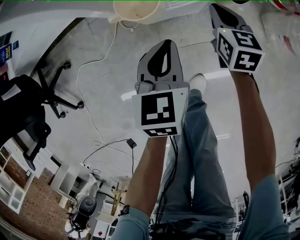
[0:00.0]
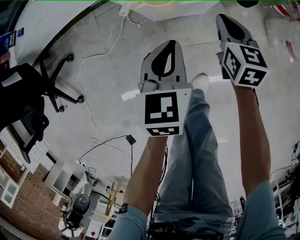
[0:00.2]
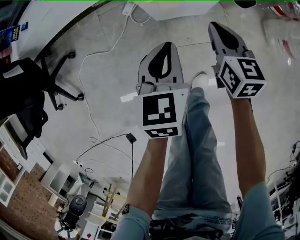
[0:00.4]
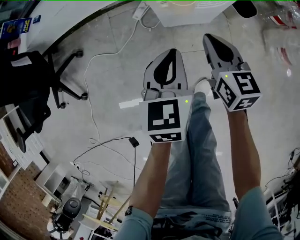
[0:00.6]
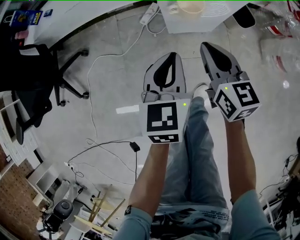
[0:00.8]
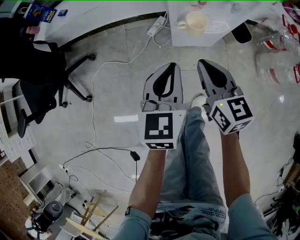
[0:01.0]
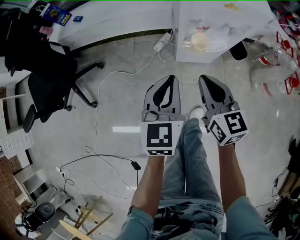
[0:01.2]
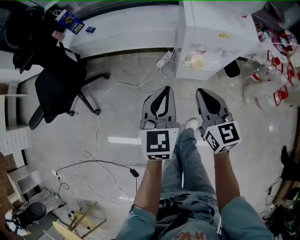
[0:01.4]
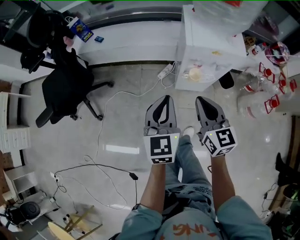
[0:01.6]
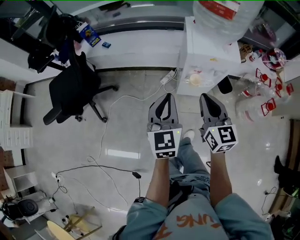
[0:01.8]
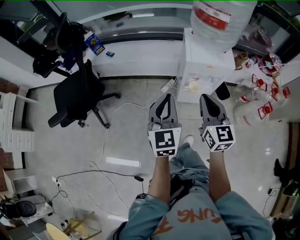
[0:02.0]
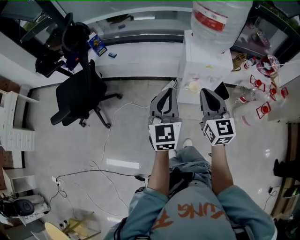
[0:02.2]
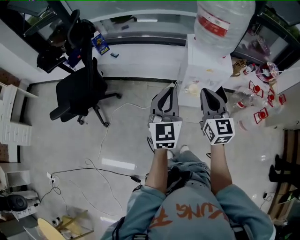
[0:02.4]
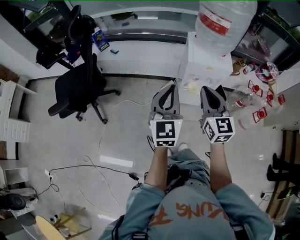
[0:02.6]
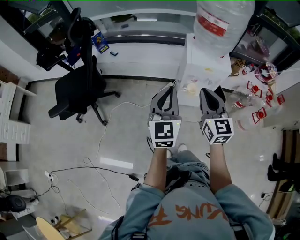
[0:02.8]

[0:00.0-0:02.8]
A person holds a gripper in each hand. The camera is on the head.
0:00.0 to 0:01.4: The left gripper goes roughly 40 cm upward and to the left, and rotates about 20 degrees, while the right gripper heads upward, to the left and backward, covering about 50 cm, and rotates roughly 30 degrees.
0:01.4 to 0:02.8: The two grippers go some 20 cm upward.

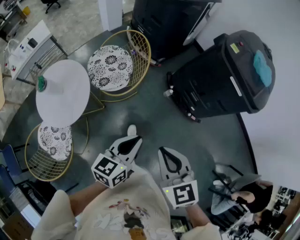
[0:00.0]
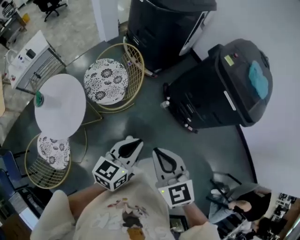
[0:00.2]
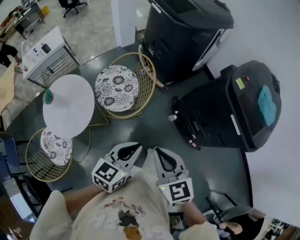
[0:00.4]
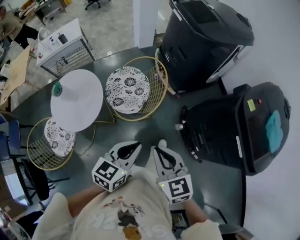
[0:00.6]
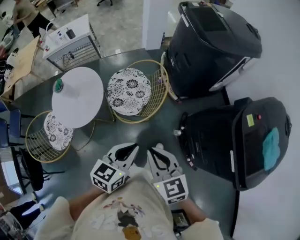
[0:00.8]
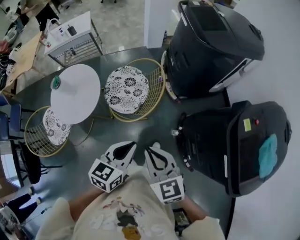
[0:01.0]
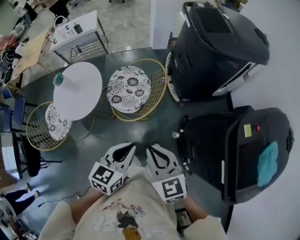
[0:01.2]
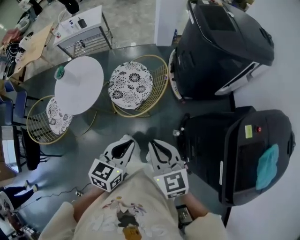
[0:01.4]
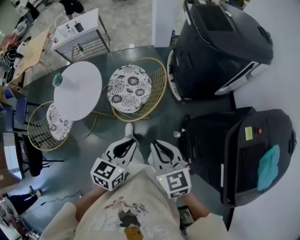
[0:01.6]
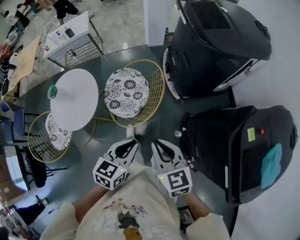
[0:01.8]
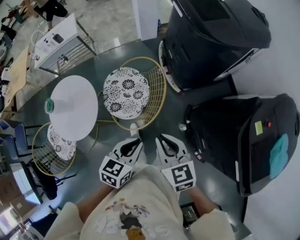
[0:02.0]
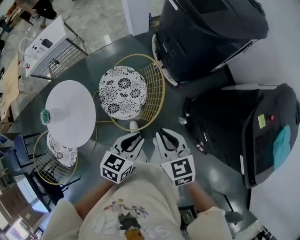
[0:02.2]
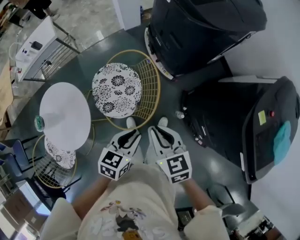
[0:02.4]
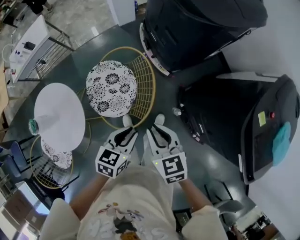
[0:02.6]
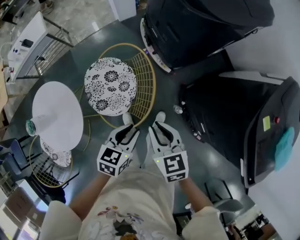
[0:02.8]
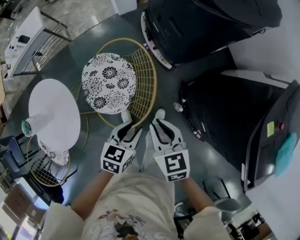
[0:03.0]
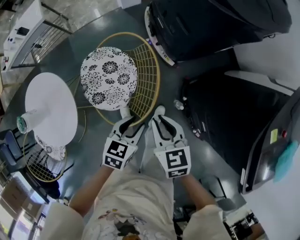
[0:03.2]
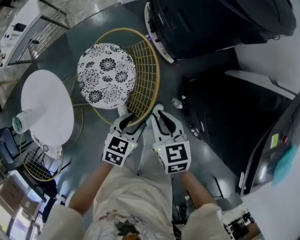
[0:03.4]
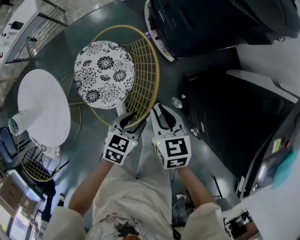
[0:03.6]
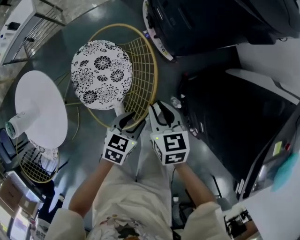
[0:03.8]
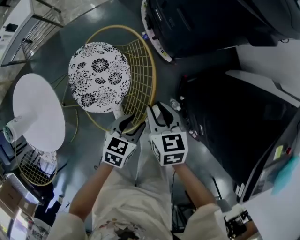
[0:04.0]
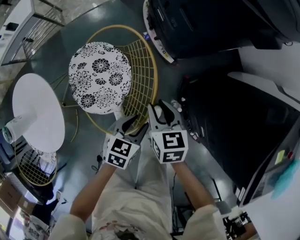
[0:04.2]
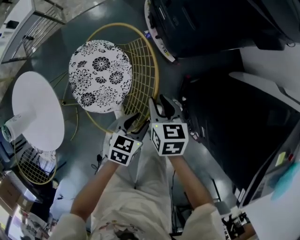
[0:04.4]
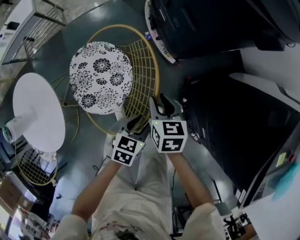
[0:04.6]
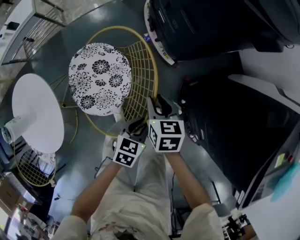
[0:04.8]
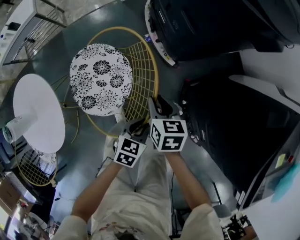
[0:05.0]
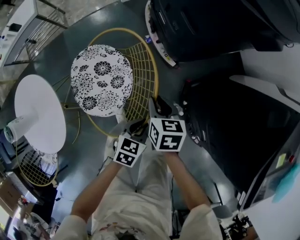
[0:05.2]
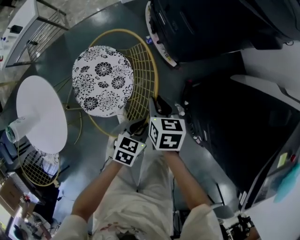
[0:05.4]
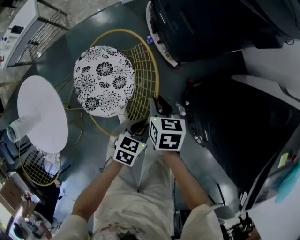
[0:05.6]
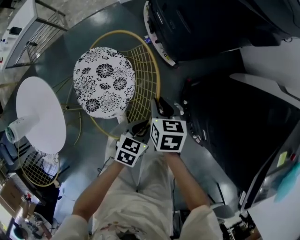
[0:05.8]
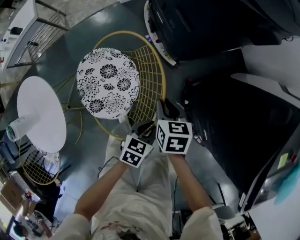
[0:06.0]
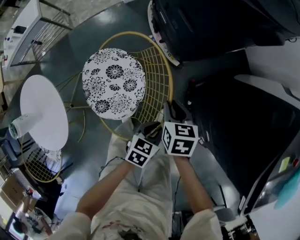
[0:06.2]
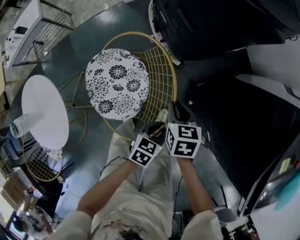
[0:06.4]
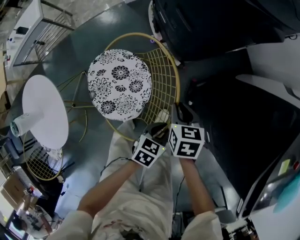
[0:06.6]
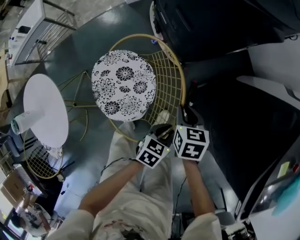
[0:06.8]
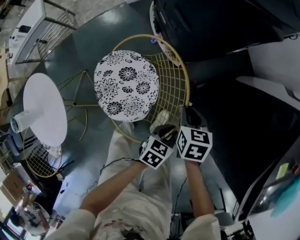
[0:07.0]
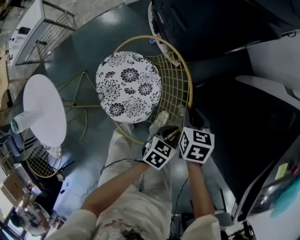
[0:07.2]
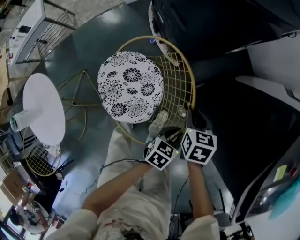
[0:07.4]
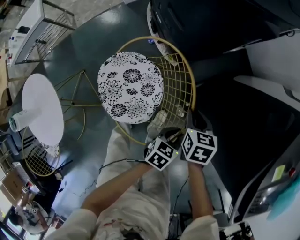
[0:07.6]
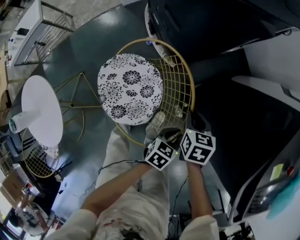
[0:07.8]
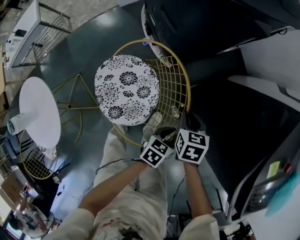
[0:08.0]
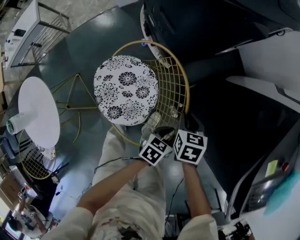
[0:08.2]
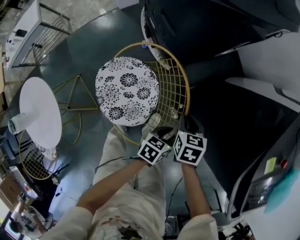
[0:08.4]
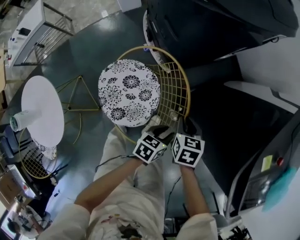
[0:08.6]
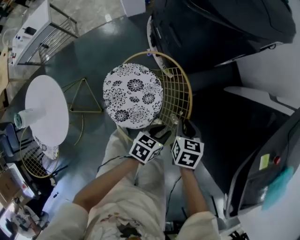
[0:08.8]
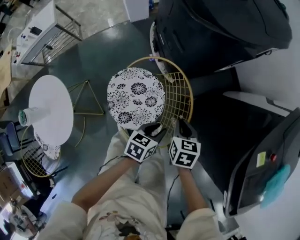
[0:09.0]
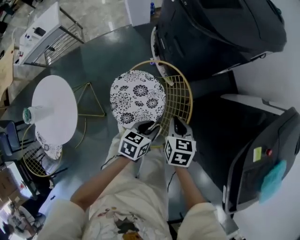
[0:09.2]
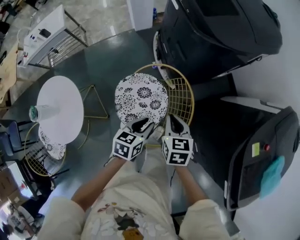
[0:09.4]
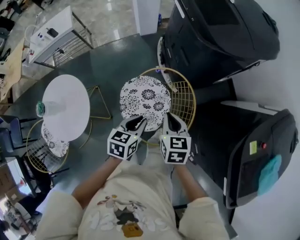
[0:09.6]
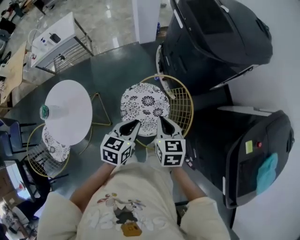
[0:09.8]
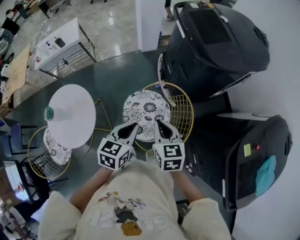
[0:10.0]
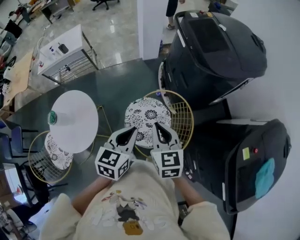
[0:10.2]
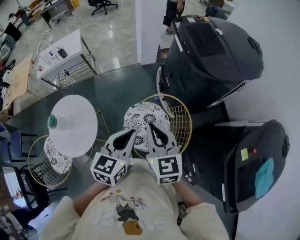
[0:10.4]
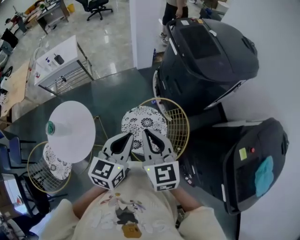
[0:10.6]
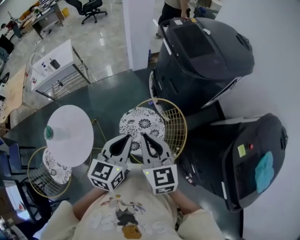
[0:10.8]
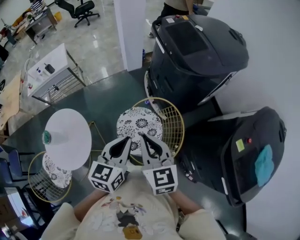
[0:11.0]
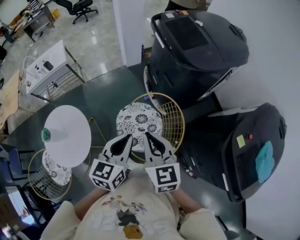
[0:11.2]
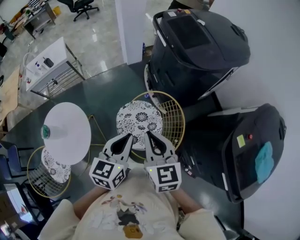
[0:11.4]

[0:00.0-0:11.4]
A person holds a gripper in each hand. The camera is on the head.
0:00.0 to 0:01.4: The right gripper ends up roughly 25 cm from where it was, and swivels about 40 degrees. The left gripper moves roughly 20 cm, and swivels roughly 40 degrees.
0:01.4 to 0:02.8: The right gripper shifts by some 20 cm, and rotates about 30 degrees. The left gripper changes place by some 25 cm, and turns by some 30 degrees.
0:02.8 to 0:04.2: The left gripper goes approximately 15 cm downward, while the right gripper travels downward and forward by roughly 20 cm.
0:04.2 to 0:05.6: The left gripper closes its fingers.
0:05.6 to 0:08.6: The grippers make only small movements.
0:08.6 to 0:10.0: Both grippers travel together upward, approximately 30 cm. The left gripper rotates about 30 degrees, and closes. The right gripper changes its angle by approximately 30 degrees.
0:10.0 to 0:11.4: Both grippers move upward, about 10 cm.

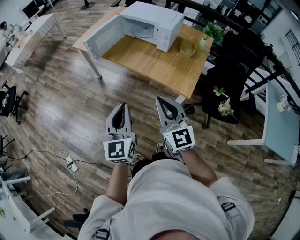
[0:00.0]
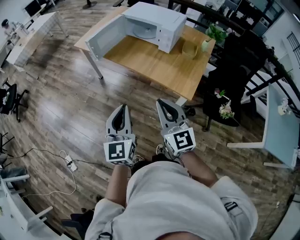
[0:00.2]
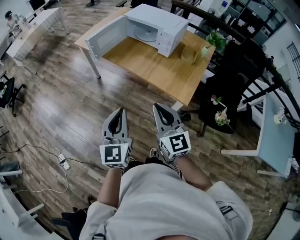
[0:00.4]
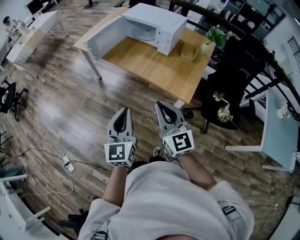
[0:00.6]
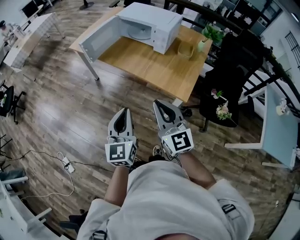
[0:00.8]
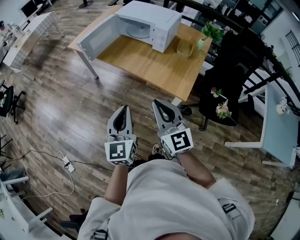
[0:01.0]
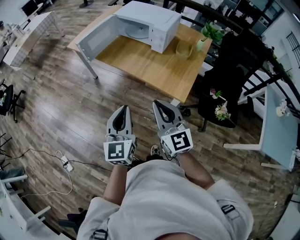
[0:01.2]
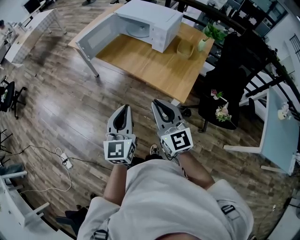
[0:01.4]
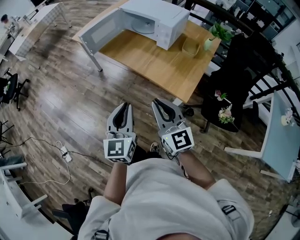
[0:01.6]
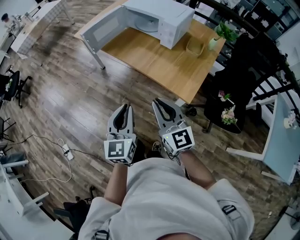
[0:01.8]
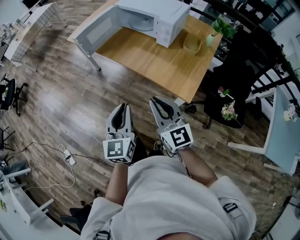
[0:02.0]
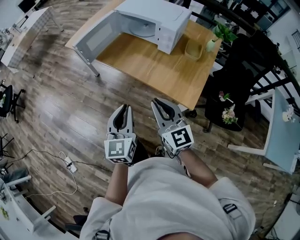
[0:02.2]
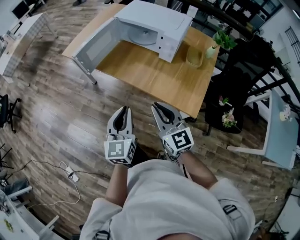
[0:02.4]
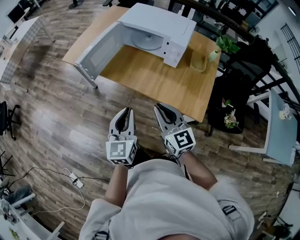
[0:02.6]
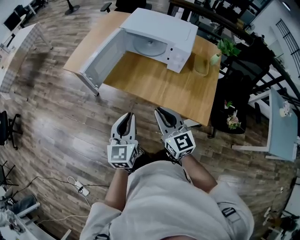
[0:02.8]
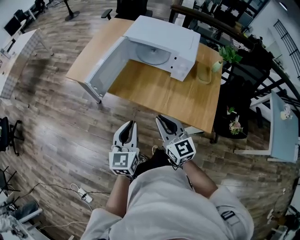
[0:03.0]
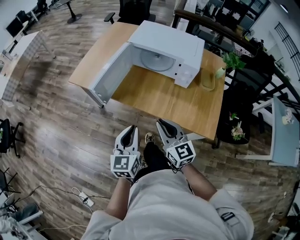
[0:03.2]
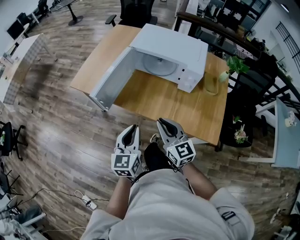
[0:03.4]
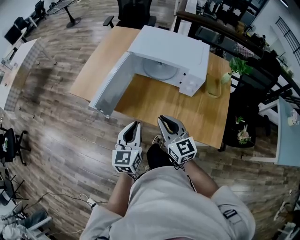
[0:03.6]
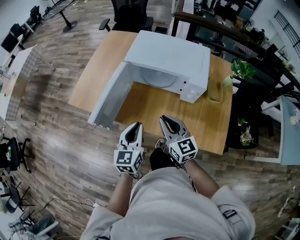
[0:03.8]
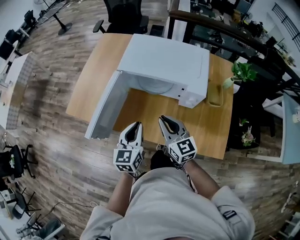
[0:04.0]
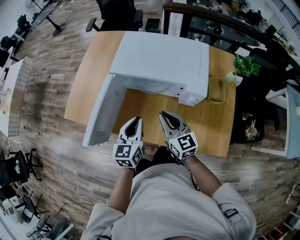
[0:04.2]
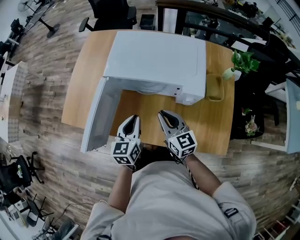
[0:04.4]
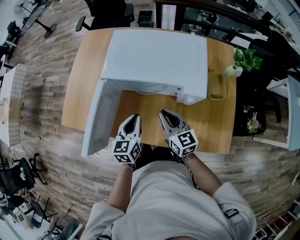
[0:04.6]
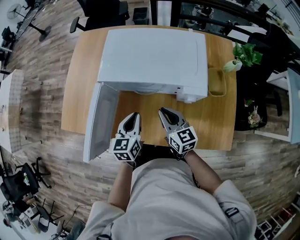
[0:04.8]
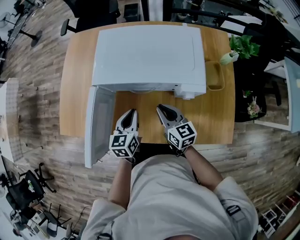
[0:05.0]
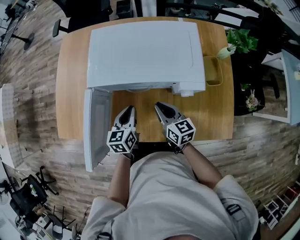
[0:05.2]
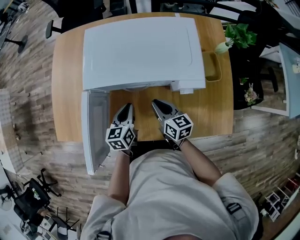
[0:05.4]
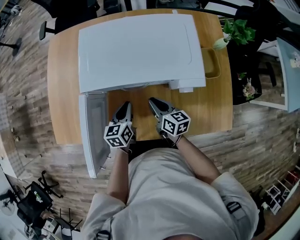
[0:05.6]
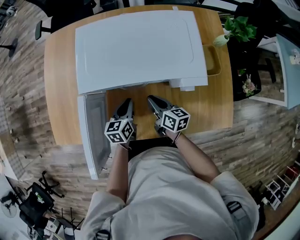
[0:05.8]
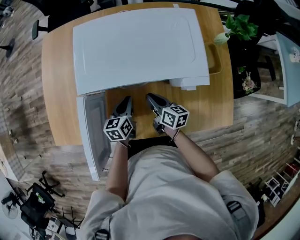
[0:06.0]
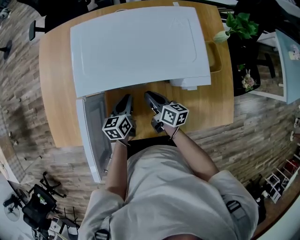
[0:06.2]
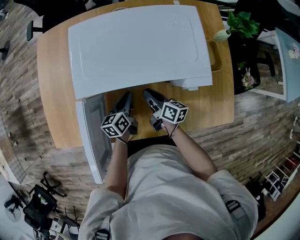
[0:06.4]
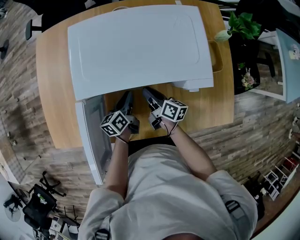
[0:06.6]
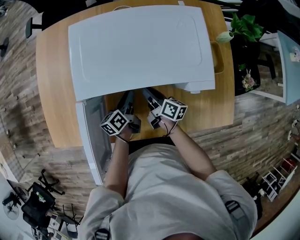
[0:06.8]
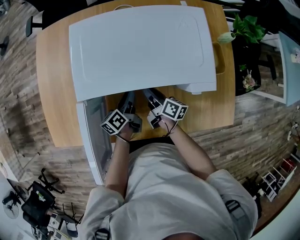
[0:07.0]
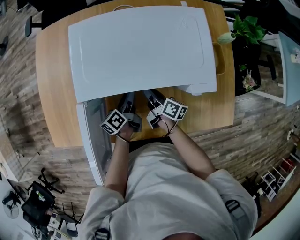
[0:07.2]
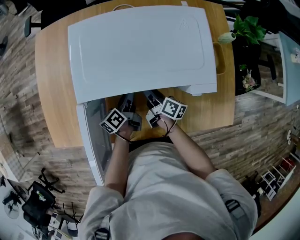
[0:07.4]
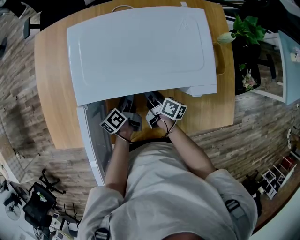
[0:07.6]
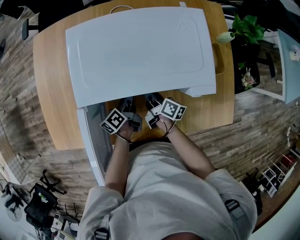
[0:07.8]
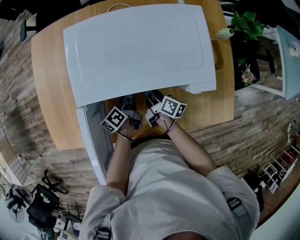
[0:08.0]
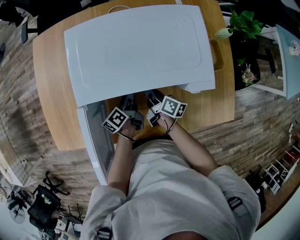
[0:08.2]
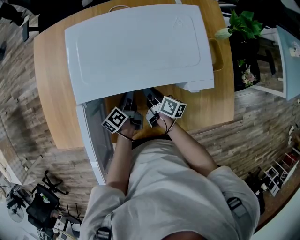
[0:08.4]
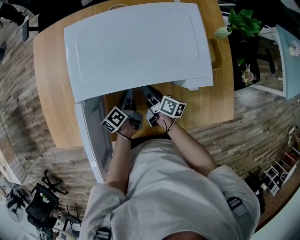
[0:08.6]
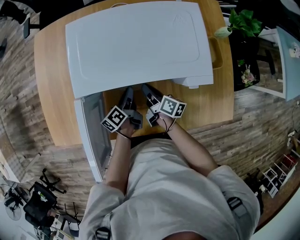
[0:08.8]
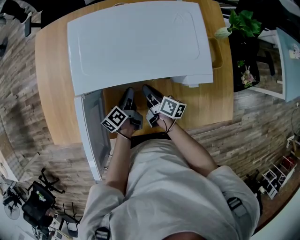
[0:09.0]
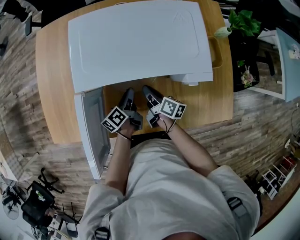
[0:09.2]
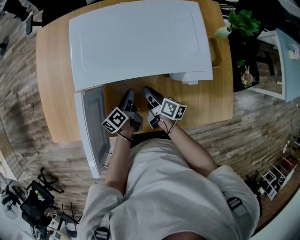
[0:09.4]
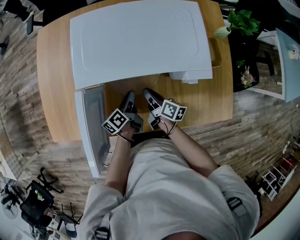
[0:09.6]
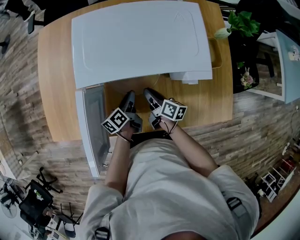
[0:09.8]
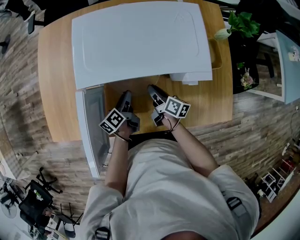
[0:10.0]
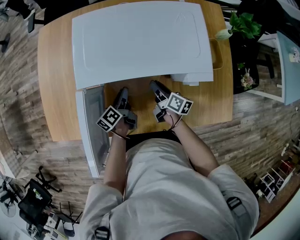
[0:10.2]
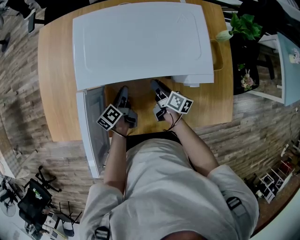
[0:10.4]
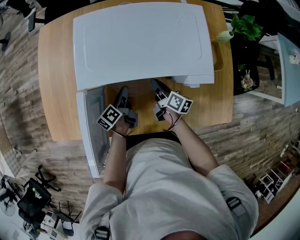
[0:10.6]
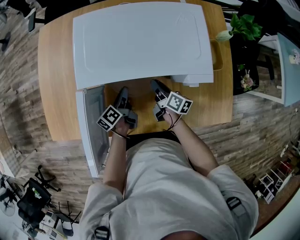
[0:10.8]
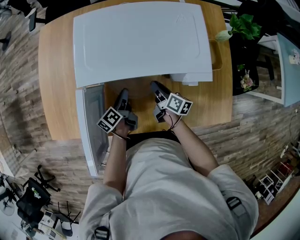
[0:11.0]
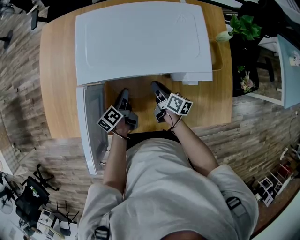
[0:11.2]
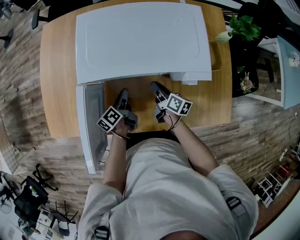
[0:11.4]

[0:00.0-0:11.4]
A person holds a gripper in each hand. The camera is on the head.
0:00.0 to 0:01.4: The left gripper travels to the right by approximately 5 cm; the right gripper shifts by approximately 5 cm.
0:01.4 to 0:02.8: Both grippers move forward and to the left, some 25 cm.
0:02.8 to 0:04.2: The grippers both shift forward by about 30 cm.
0:04.2 to 0:05.6: Both grippers travel together downward and forward, about 15 cm. The right gripper turns by about 40 degrees, while the left gripper swivels about 20 degrees.
0:05.6 to 0:07.2: The right gripper moves forward and downward, roughly 5 cm, and changes its angle by approximately 30 degrees; the left gripper travels downward by roughly 5 cm, changes its angle by about 40 degrees, and opens its fingers.
0:07.2 to 0:08.6: Both grippers stay put.
0:08.6 to 0:11.4: The grippers stay close to where they were, moving slightly.
